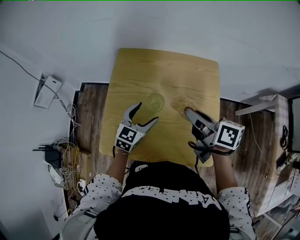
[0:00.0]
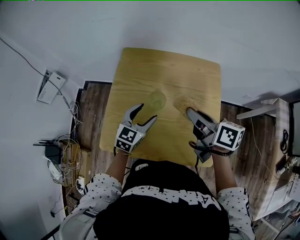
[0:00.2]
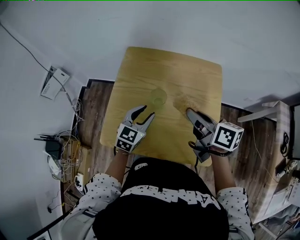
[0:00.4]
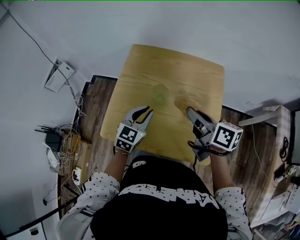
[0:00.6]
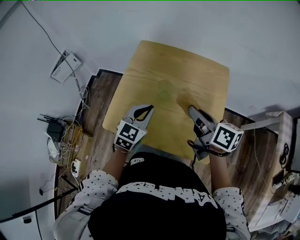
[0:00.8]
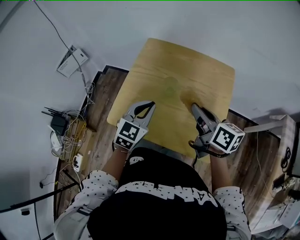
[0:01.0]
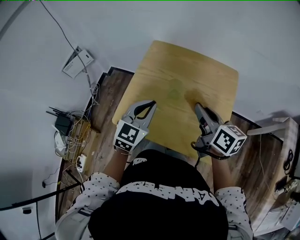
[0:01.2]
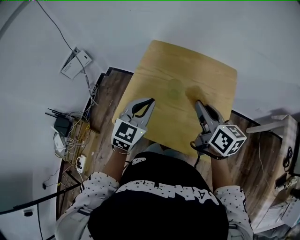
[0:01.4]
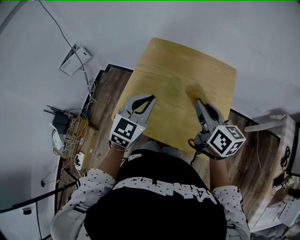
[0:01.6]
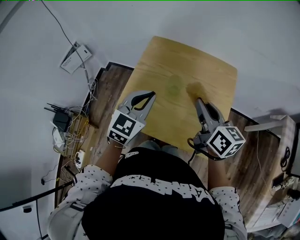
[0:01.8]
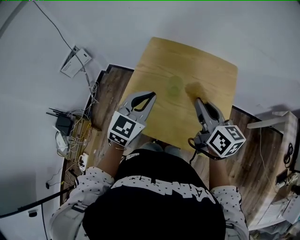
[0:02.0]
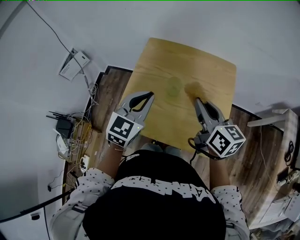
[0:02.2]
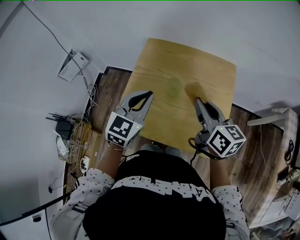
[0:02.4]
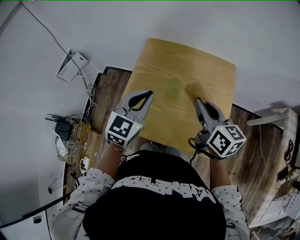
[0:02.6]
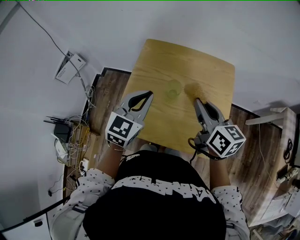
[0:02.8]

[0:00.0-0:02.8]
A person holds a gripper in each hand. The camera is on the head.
0:00.0 to 0:01.4: The left gripper heads upward and backward, covering about 15 cm, and closes its fingers; the right gripper shifts by about 5 cm, and swivels some 20 degrees.
0:01.4 to 0:02.8: The grippers move only a little.

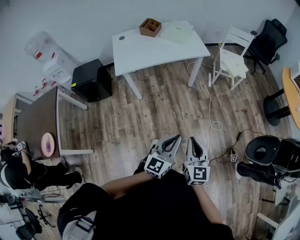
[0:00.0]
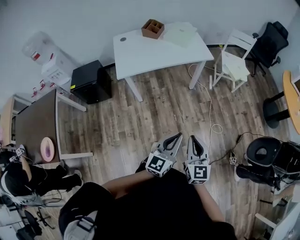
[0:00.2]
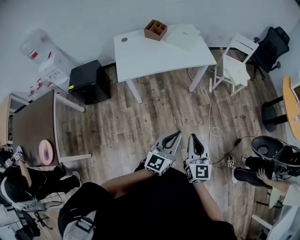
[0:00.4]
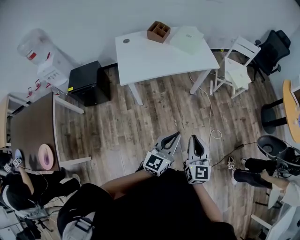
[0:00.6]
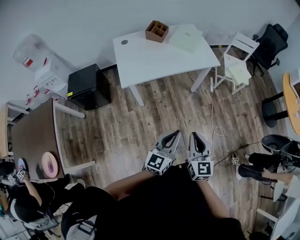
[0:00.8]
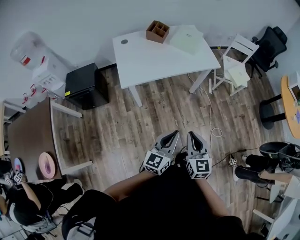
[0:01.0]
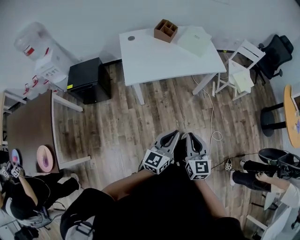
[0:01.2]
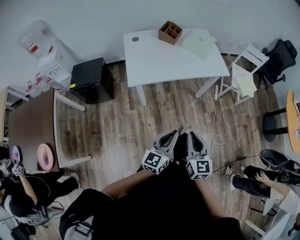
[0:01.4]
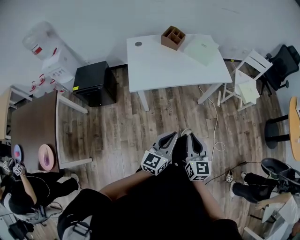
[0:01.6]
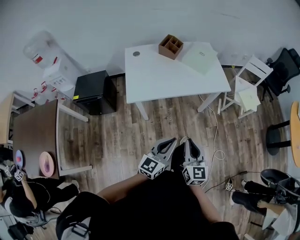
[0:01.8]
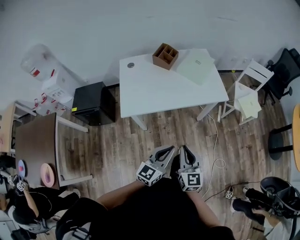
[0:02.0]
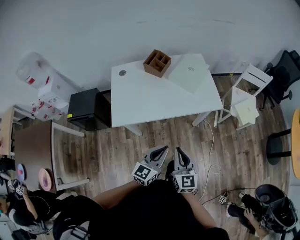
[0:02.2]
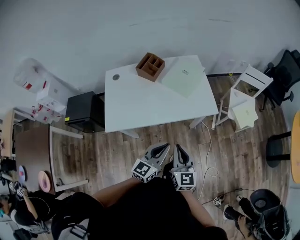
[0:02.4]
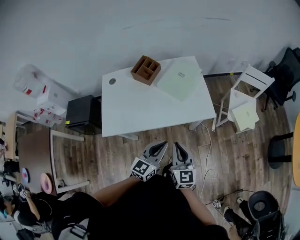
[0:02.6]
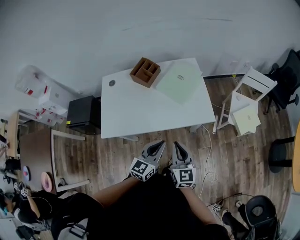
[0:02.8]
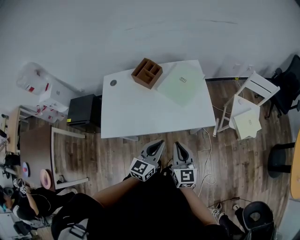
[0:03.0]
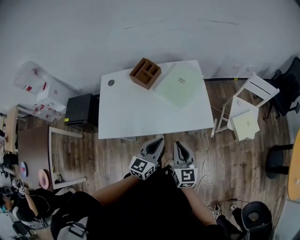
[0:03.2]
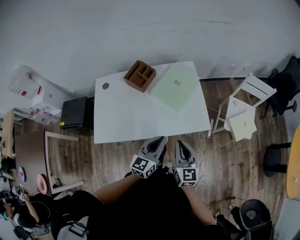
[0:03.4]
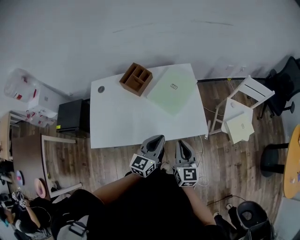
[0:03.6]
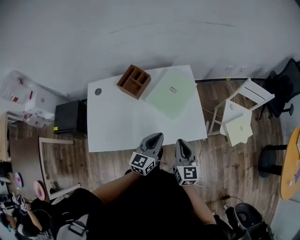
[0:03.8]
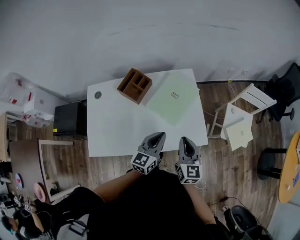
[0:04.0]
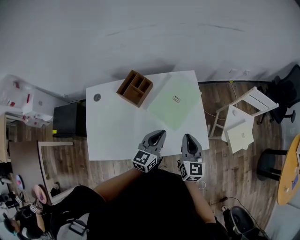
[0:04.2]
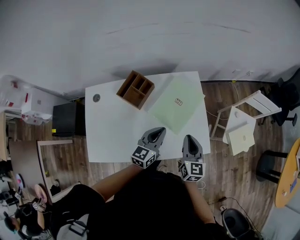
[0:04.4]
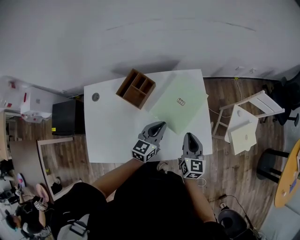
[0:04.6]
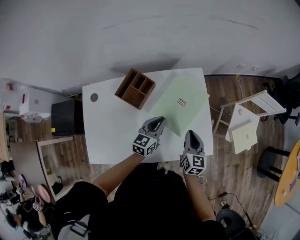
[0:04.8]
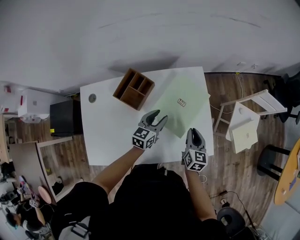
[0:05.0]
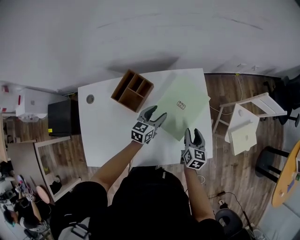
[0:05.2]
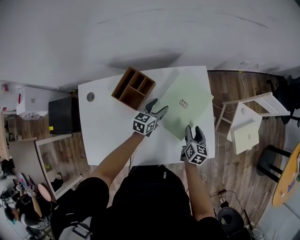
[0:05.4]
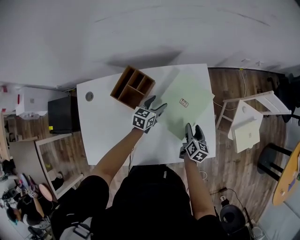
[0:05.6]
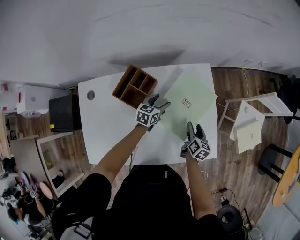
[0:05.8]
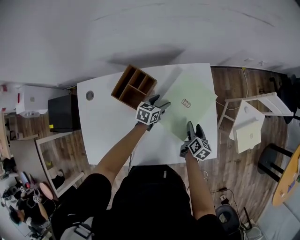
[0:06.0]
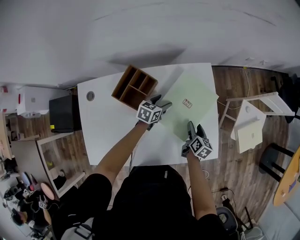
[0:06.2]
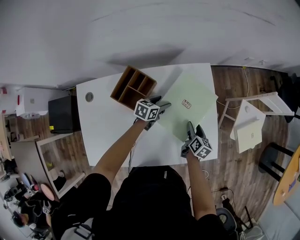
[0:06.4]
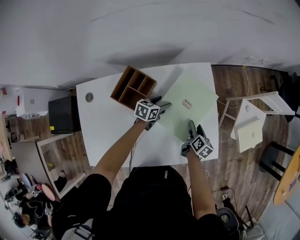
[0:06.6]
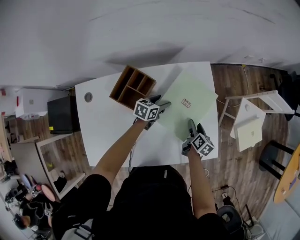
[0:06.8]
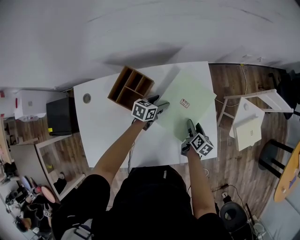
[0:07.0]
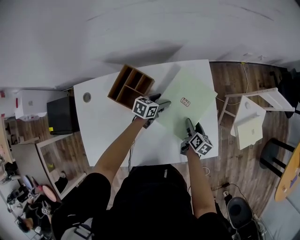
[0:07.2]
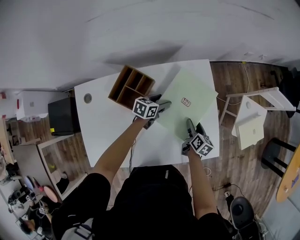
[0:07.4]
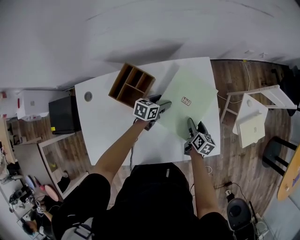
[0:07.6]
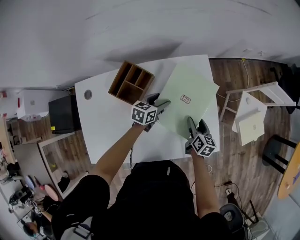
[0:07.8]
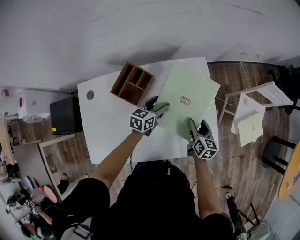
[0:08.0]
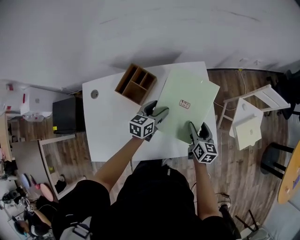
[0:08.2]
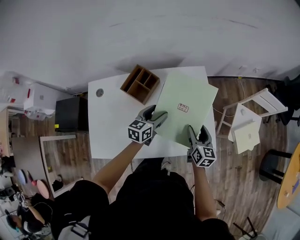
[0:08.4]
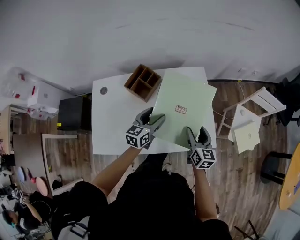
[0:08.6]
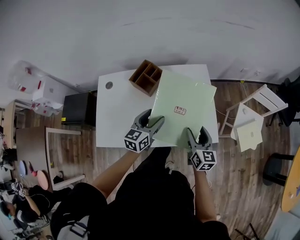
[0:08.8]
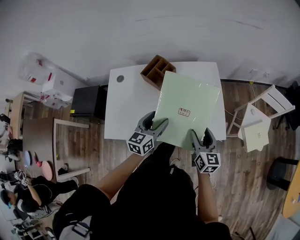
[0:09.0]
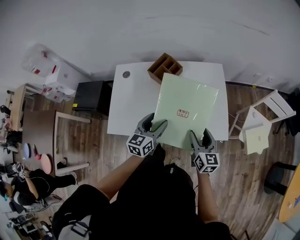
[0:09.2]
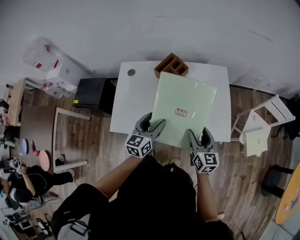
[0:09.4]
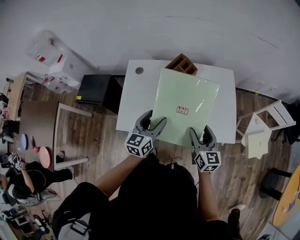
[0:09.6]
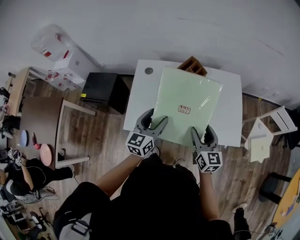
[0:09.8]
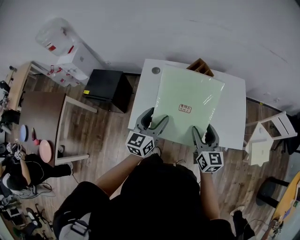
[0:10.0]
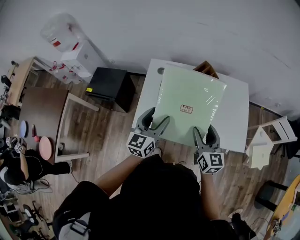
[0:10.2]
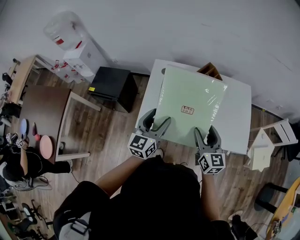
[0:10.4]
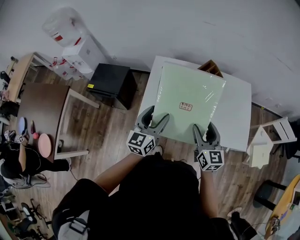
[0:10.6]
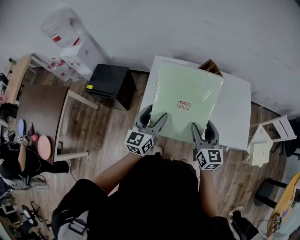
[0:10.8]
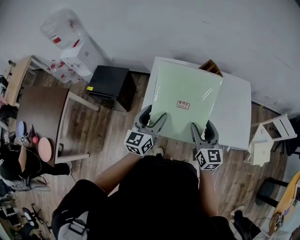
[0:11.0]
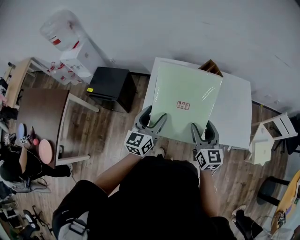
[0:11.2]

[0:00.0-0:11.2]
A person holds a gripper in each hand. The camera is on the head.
0:00.0 to 0:01.6: The left gripper shifts roughly 30 cm to the left and forward. The right gripper goes roughly 30 cm forward and to the left.
0:01.6 to 0:03.2: The two grippers travel together, forward, about 40 cm.
0:03.2 to 0:04.8: Both grippers travel together forward, roughly 30 cm.
0:04.8 to 0:06.4: The right gripper goes some 15 cm downward, changes its angle by roughly 30 degrees, and opens its fingers; the left gripper moves downward and forward, some 20 cm, rotates about 30 degrees, and opens.
0:06.4 to 0:08.0: Both grippers travel together upward, roughly 10 cm.
0:08.0 to 0:09.6: Both grippers move backward, upward and to the left, some 35 cm. The left gripper changes its angle by roughly 30 degrees; the right gripper rotates approximately 30 degrees.
0:09.6 to 0:11.2: Both grippers move to the left, approximately 20 cm.

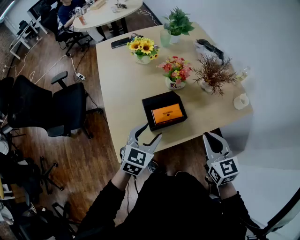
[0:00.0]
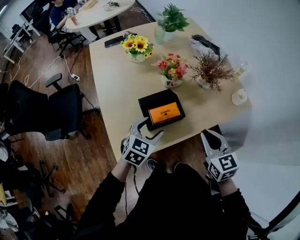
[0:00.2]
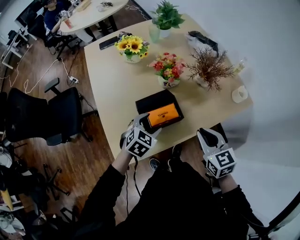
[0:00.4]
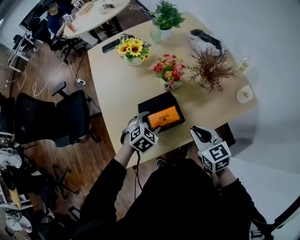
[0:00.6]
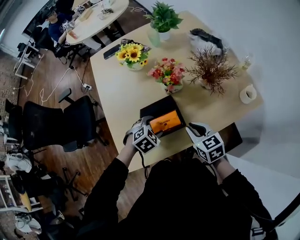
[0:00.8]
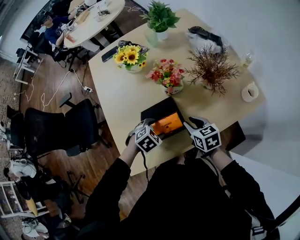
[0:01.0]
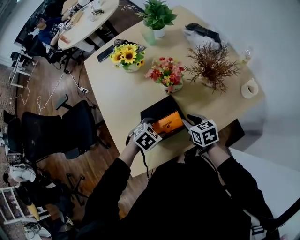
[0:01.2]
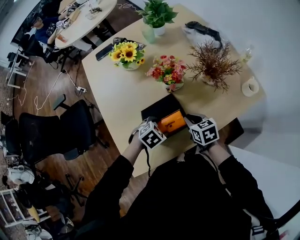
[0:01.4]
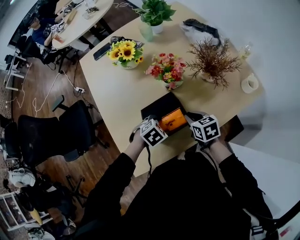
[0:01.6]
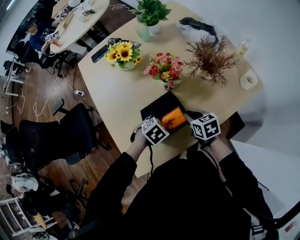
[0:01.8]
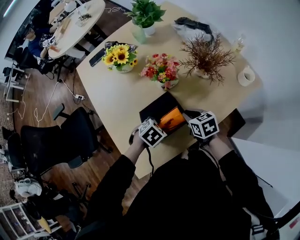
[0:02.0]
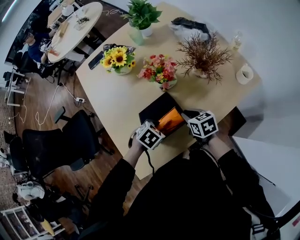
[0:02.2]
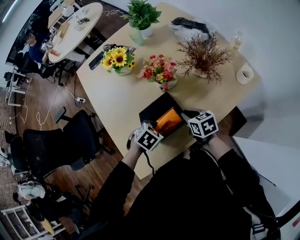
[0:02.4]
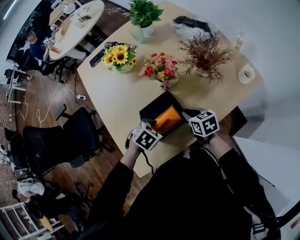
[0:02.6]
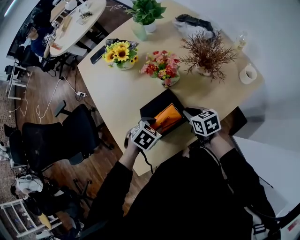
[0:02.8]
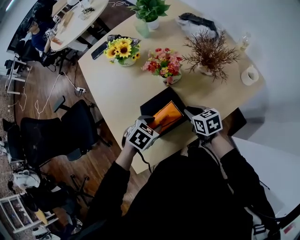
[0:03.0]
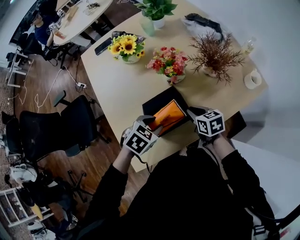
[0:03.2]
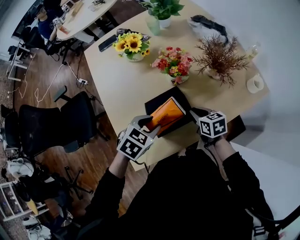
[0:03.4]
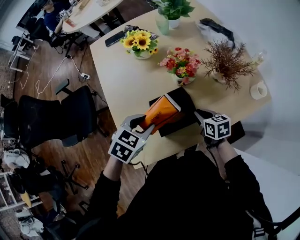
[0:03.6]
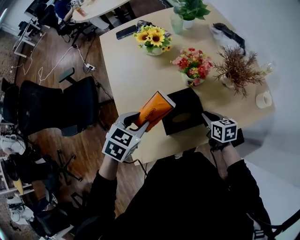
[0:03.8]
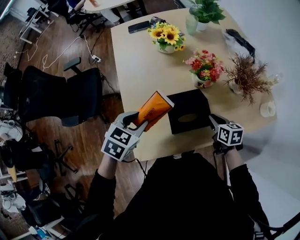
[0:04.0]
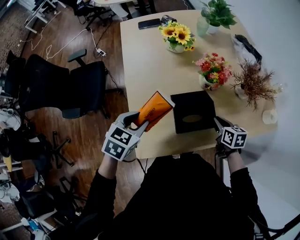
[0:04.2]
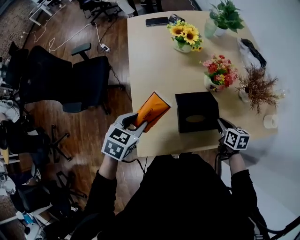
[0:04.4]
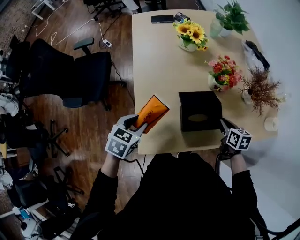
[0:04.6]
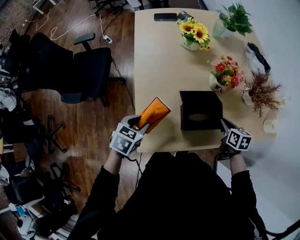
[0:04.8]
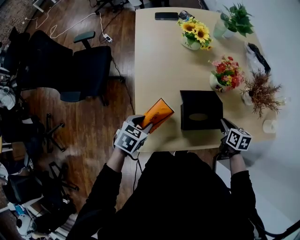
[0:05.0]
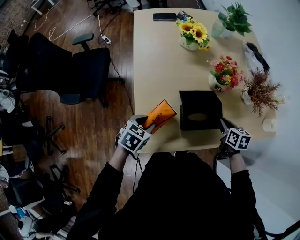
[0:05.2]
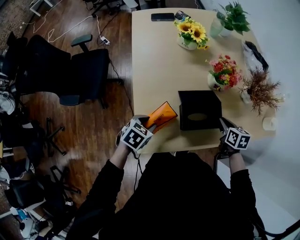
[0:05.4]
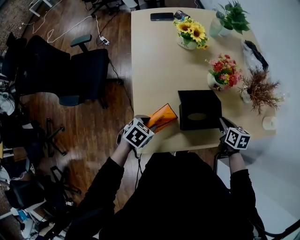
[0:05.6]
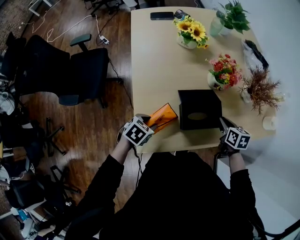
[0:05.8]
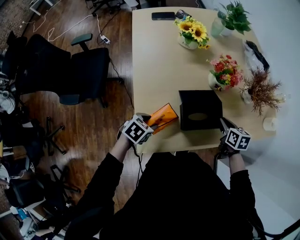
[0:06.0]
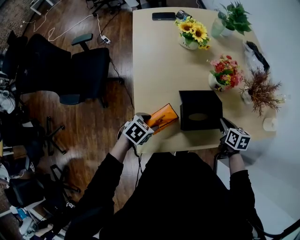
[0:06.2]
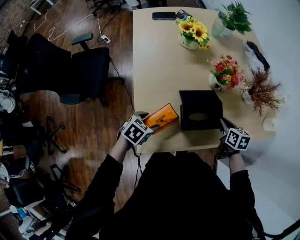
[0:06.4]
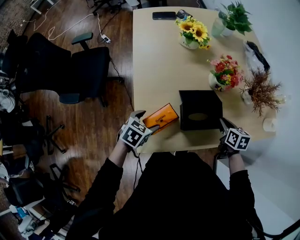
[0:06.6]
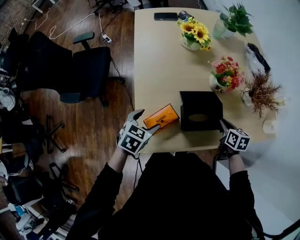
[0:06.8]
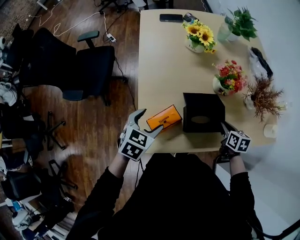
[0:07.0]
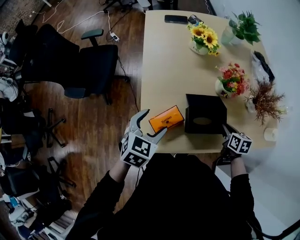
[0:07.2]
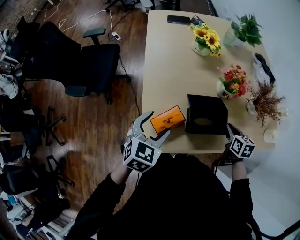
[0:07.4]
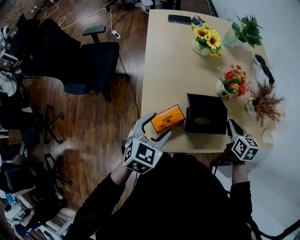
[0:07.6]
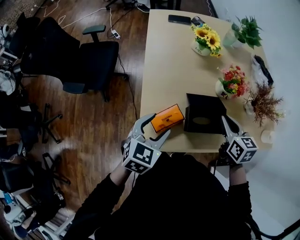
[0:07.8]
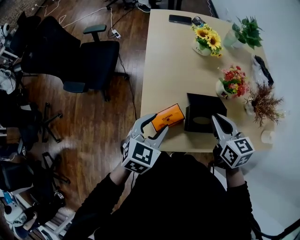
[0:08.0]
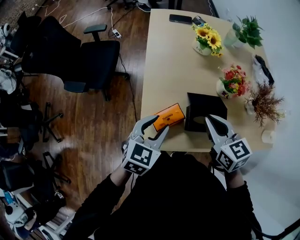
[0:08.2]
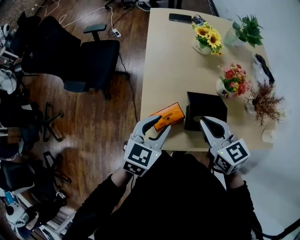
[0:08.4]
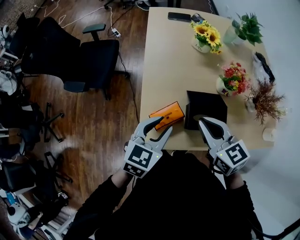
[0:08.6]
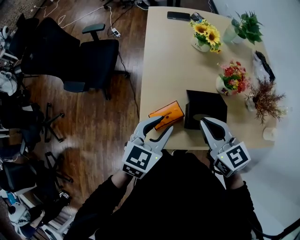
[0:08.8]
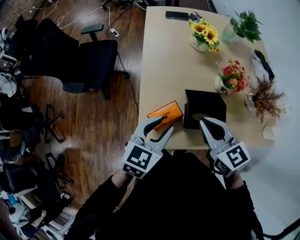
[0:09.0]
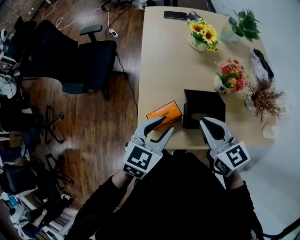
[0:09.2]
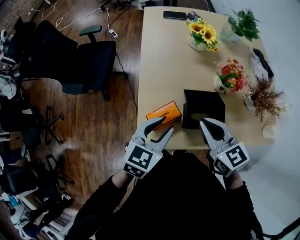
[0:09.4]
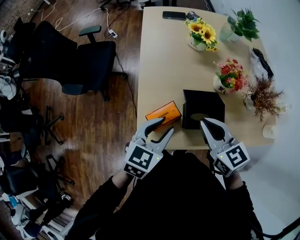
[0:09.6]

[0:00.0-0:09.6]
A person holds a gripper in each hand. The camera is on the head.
0:00.0 to 0:01.6: The grippers both shift downward and forward by roughly 20 cm. The right gripper changes its angle by roughly 30 degrees. Meanwhile the left gripper points its fingers some 40 degrees further downward.
0:01.6 to 0:03.2: The left gripper shifts some 10 cm upward, and closes up.
0:03.2 to 0:04.8: The left gripper moves to the left, some 20 cm, and changes its angle by about 40 degrees.
0:04.8 to 0:06.4: The left gripper travels downward by about 5 cm, and opens.
0:06.4 to 0:08.0: The right gripper travels upward and to the left by roughly 20 cm, and turns by roughly 30 degrees. Meanwhile the left gripper is displaced upward by about 15 cm, and turns by approximately 30 degrees.
0:08.0 to 0:09.6: The right gripper ends up approximately 5 cm from where it was.
